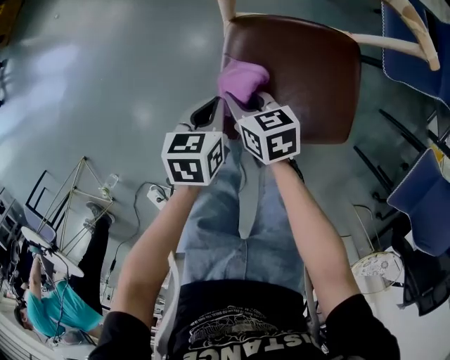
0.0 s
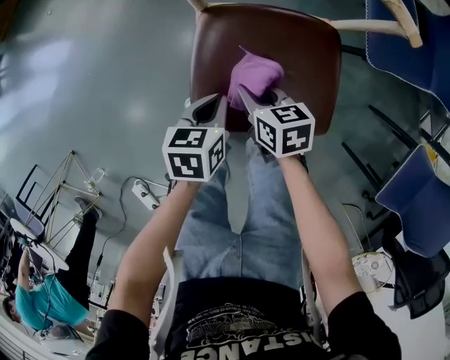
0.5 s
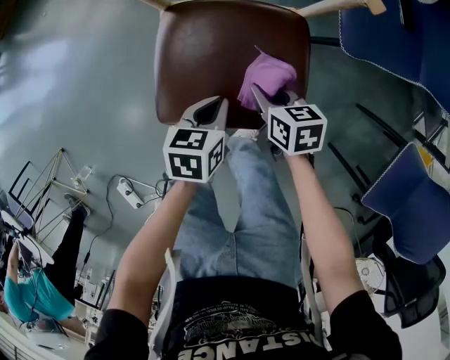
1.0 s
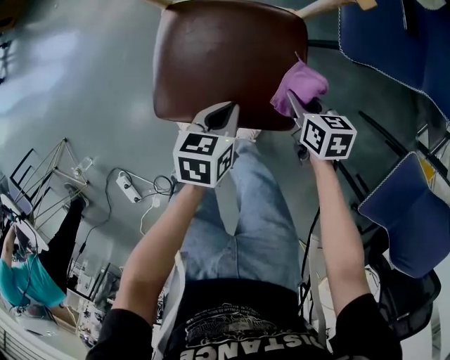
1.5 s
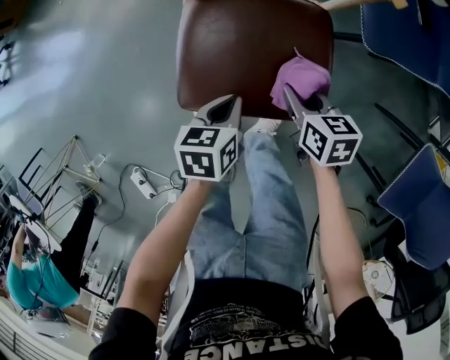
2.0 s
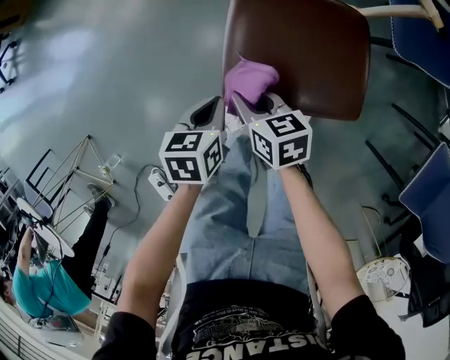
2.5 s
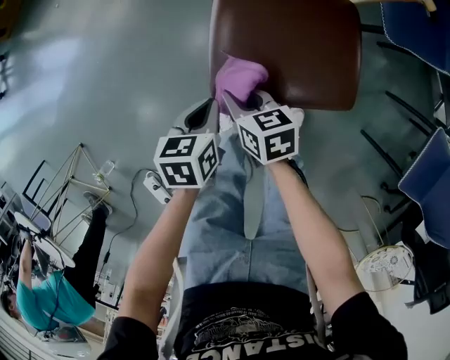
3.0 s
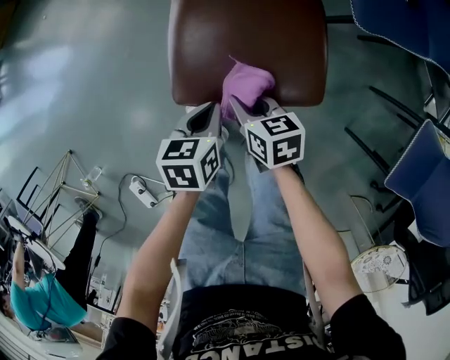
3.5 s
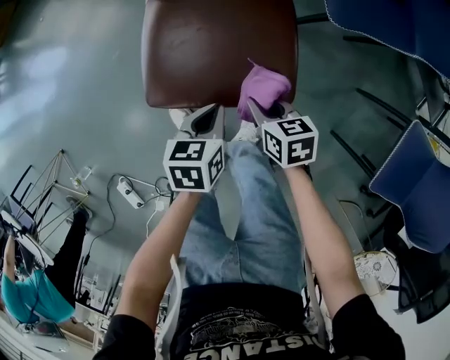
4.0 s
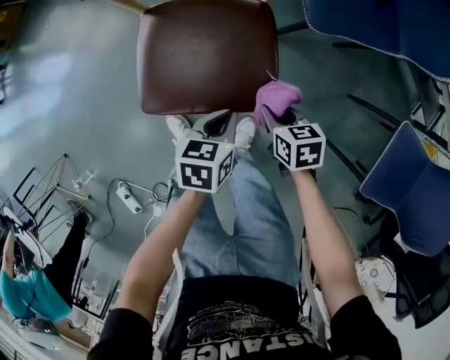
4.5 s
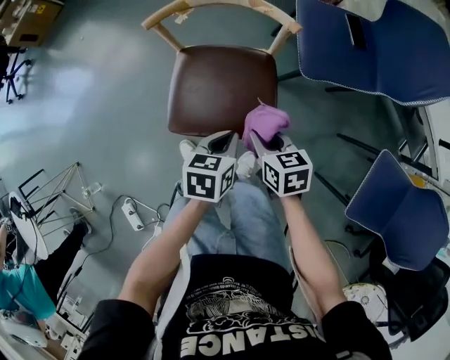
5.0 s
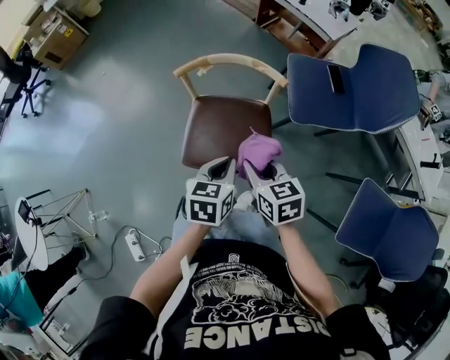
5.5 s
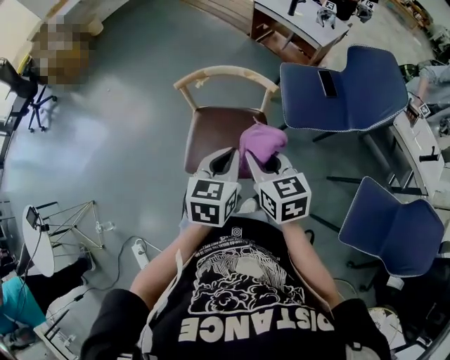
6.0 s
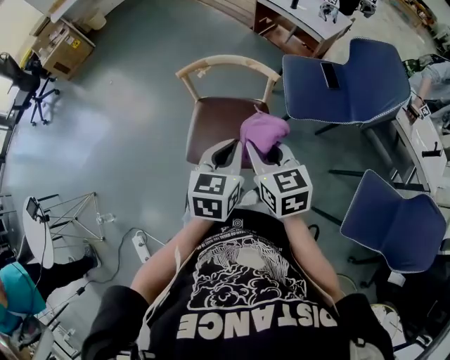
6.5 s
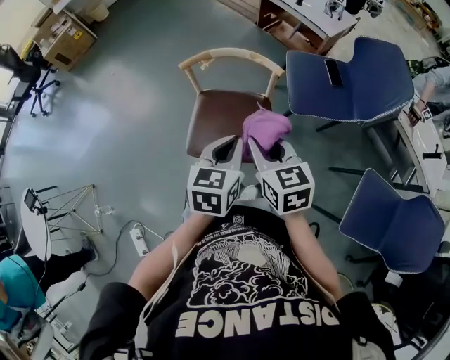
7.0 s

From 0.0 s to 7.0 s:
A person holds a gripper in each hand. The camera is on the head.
From 0.0 s to 2.0 s: The left gripper moves to the right and backward, some 15 cm. The right gripper goes roughly 25 cm to the right.
From 2.0 s to 3.5 s: The left gripper travels to the left and back again, some 15 cm each way; the right gripper travels to the left and backward by about 15 cm.
From 3.5 s to 5.0 s: The two grippers go about 20 cm upward and to the right.
From 5.0 s to 7.0 s: Both grippers travel together upward, some 20 cm. The right gripper rotates some 20 degrees. Meanwhile the left gripper swivels approximately 20 degrees.

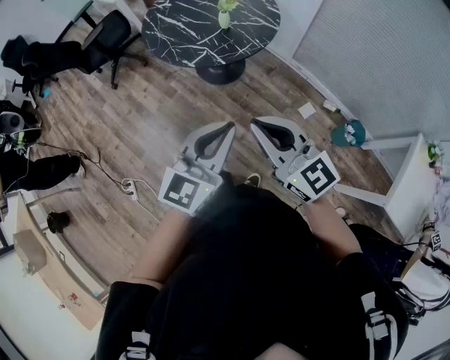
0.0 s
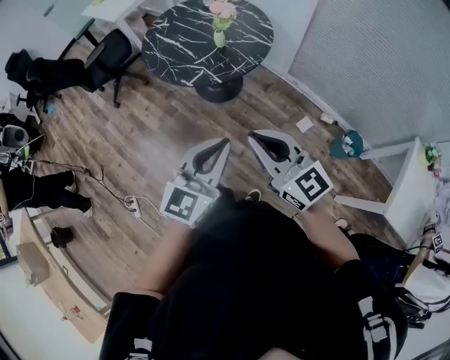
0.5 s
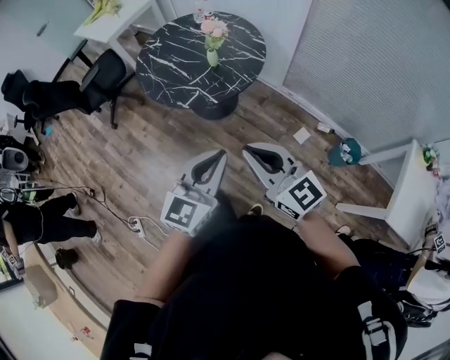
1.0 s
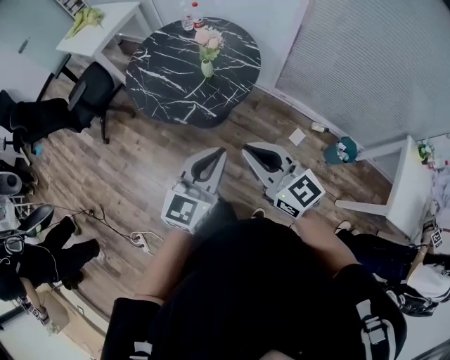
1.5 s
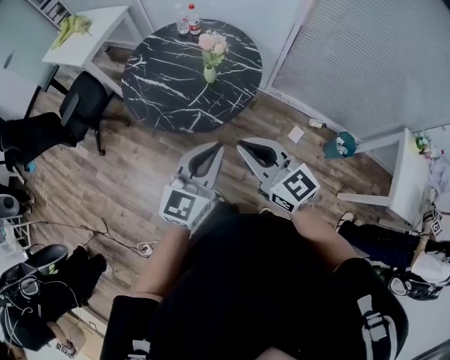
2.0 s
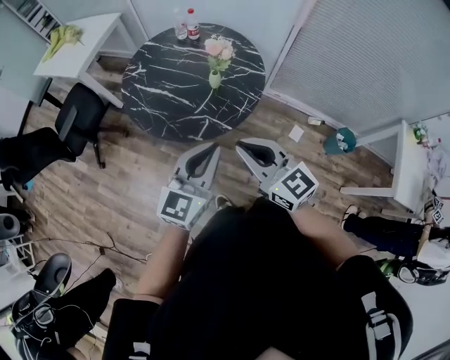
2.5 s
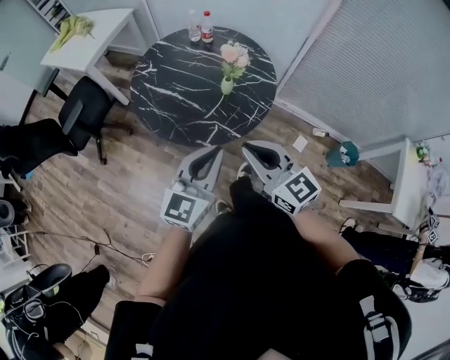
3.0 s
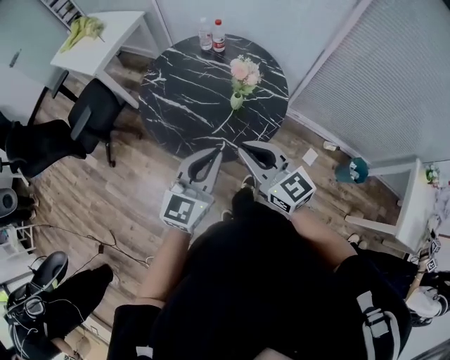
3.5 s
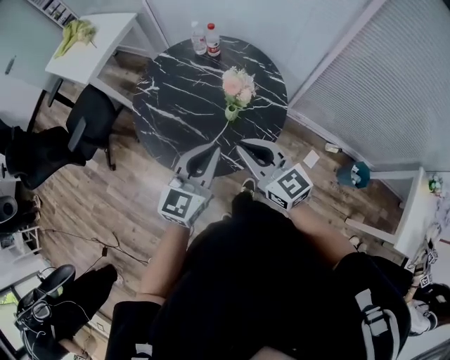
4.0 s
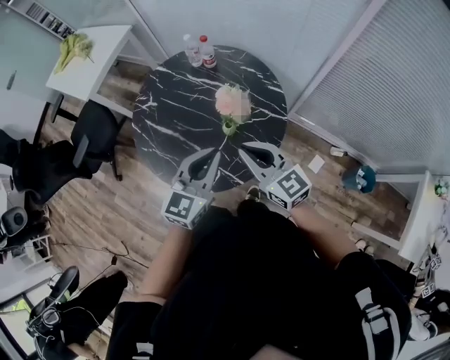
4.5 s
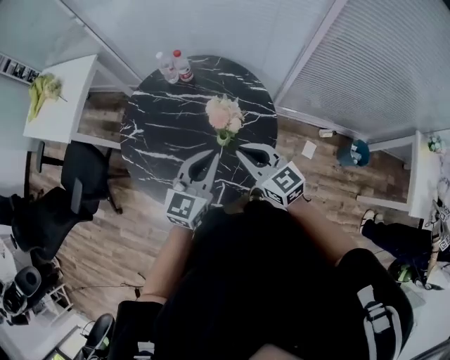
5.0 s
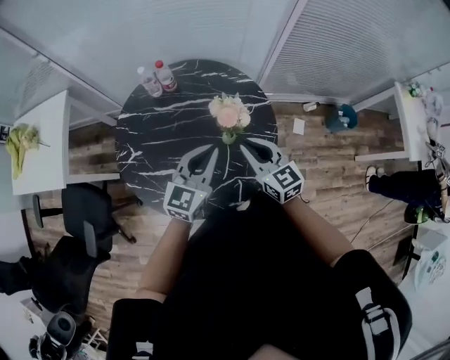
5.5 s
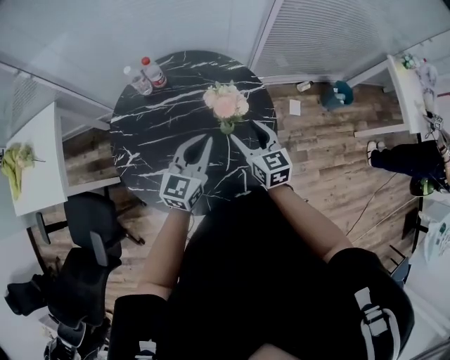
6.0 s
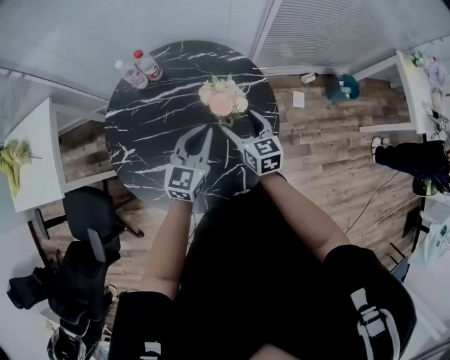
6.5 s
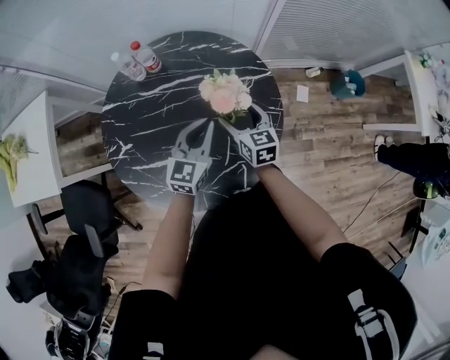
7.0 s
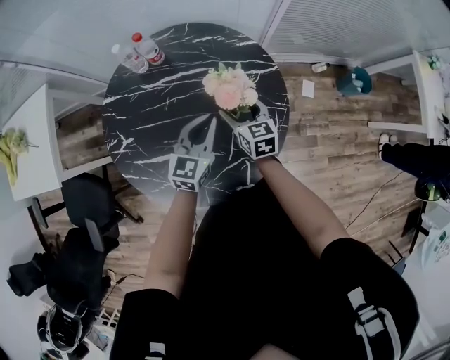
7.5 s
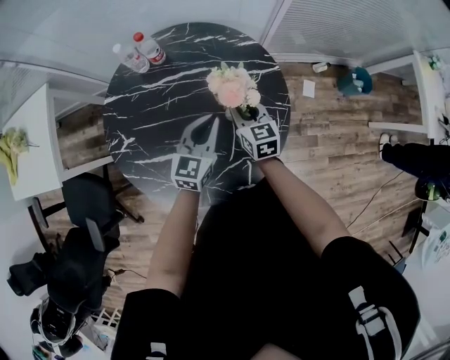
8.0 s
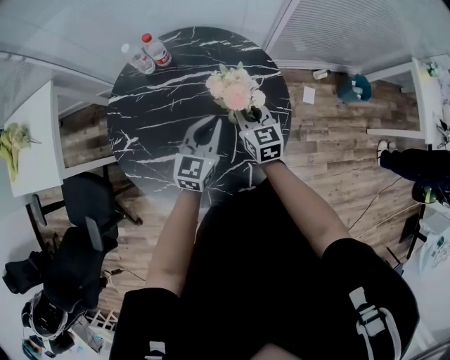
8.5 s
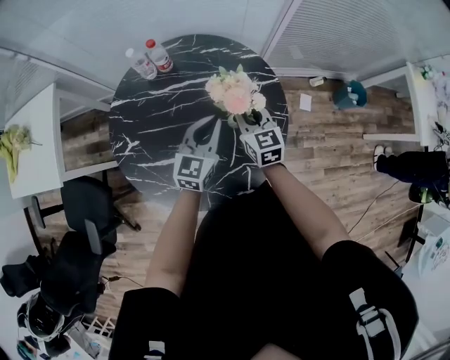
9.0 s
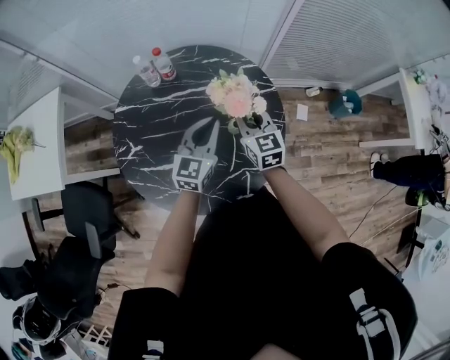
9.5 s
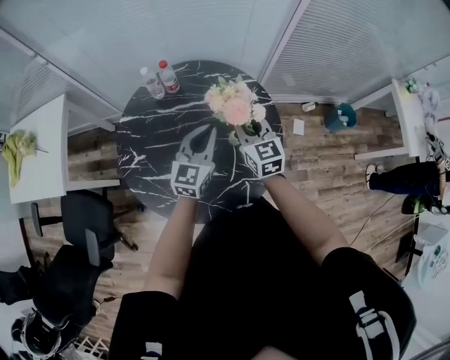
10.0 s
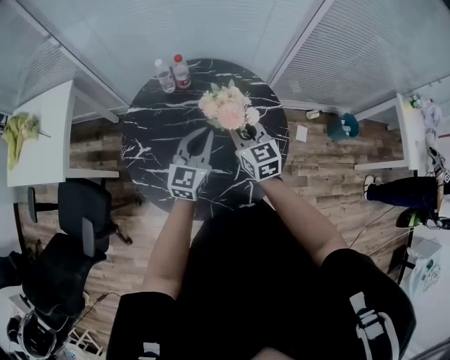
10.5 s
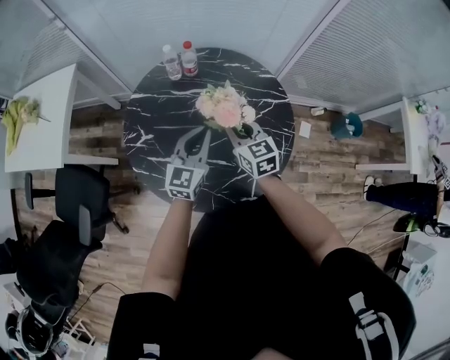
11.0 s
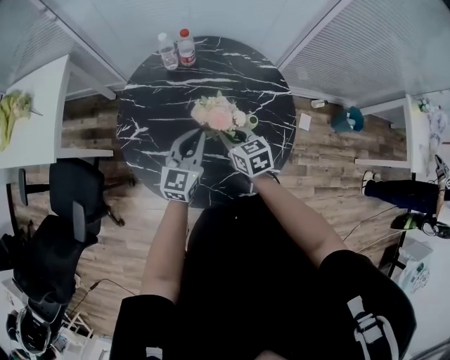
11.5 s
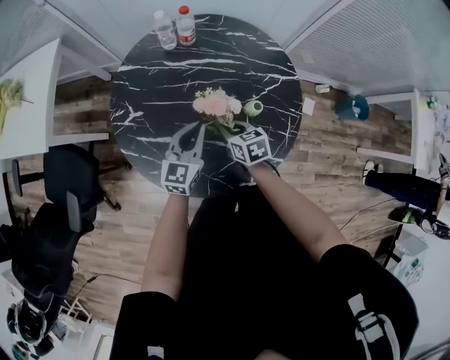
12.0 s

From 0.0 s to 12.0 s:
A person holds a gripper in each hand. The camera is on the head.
From 0.0 s to 2.0 s: Both grippers travel together forward and to the left, approximately 20 cm.
From 2.0 s to 4.0 s: The two grippers go some 25 cm forward.
From 4.0 s to 6.0 s: The right gripper moves about 20 cm, rotates about 60 degrees, and opens, while the left gripper changes place by roughly 20 cm, and changes its angle by roughly 40 degrees.
From 6.0 s to 8.0 s: The left gripper heads downward, covering roughly 10 cm; the right gripper heads downward and forward, covering approximately 15 cm, and closes its fingers.
From 8.0 s to 10.0 s: The left gripper heads upward, covering about 10 cm; the right gripper moves upward, about 15 cm.
From 10.0 s to 12.0 s: The right gripper heads downward and to the left, covering some 25 cm, and swivels some 40 degrees. Meanwhile the left gripper heads downward and to the left, covering some 15 cm.

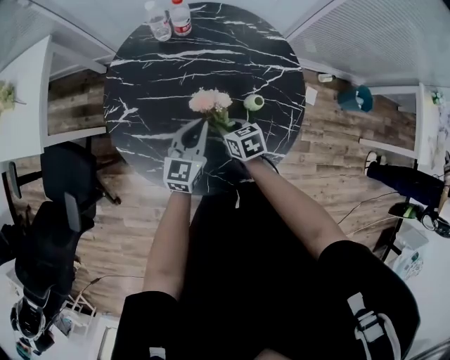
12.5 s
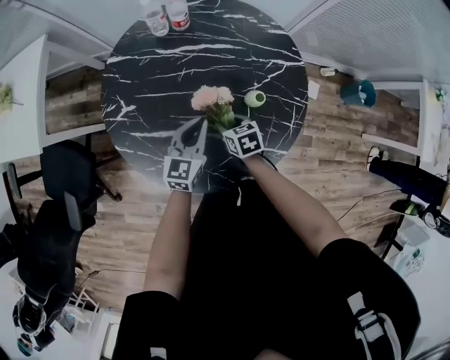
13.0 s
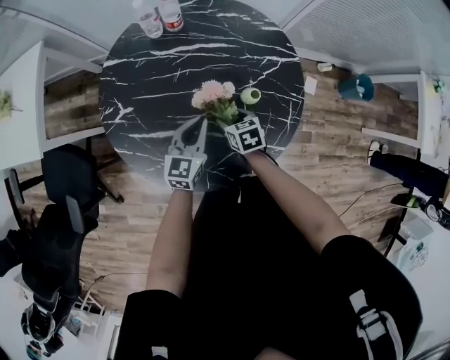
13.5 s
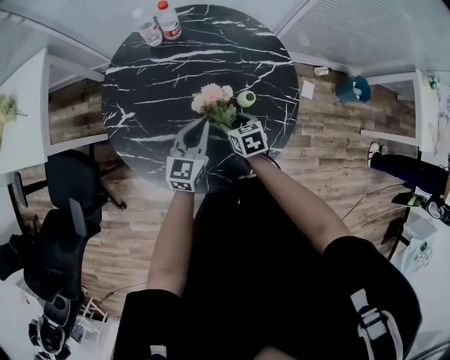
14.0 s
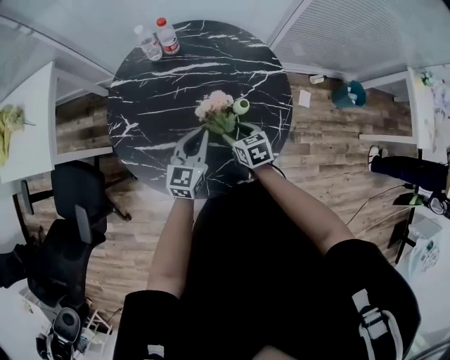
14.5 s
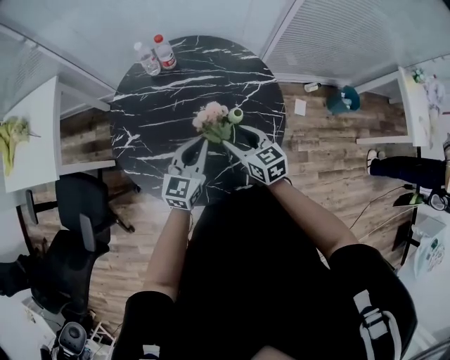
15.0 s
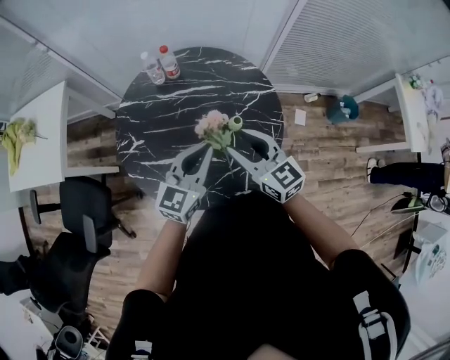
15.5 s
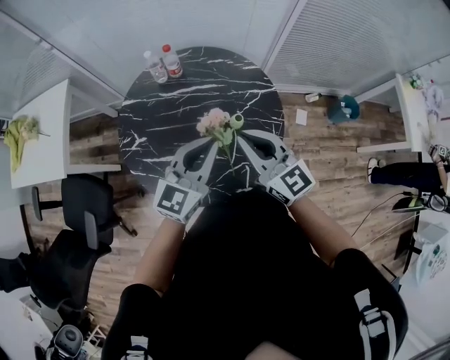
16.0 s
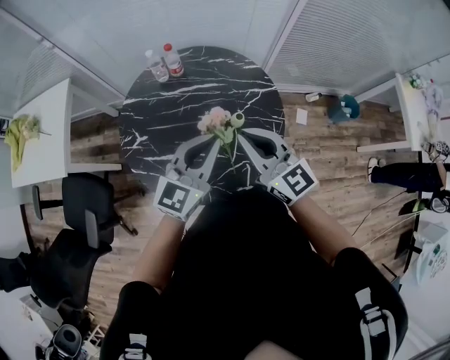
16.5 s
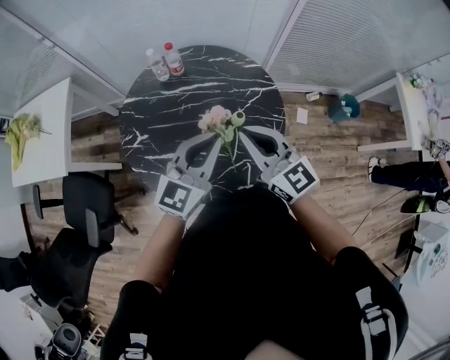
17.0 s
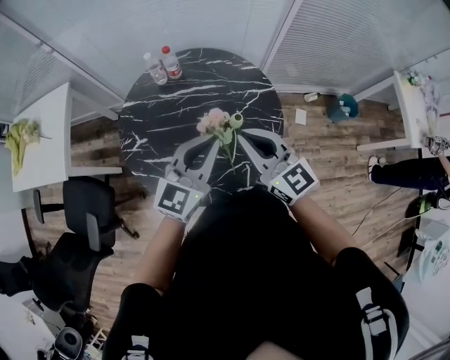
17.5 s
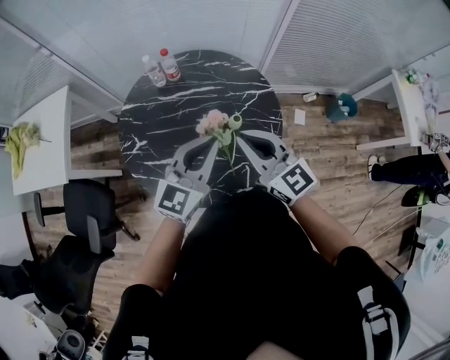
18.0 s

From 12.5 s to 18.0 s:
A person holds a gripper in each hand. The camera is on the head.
From 12.5 s to 14.5 s: The right gripper goes about 5 cm to the right, and opens.
From 14.5 s to 16.0 s: The grippers both shift upward by about 25 cm. The right gripper angles its fingers upward, by roughly 50 degrees, and closes.
From 16.0 s to 18.0 s: The grippers stay close to where they were, moving slightly.

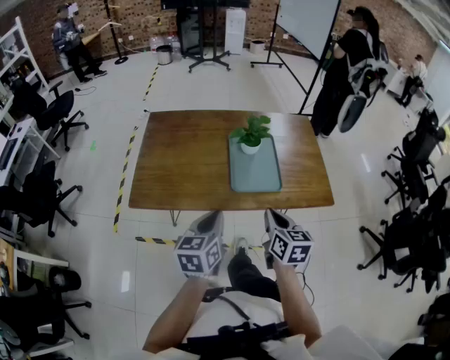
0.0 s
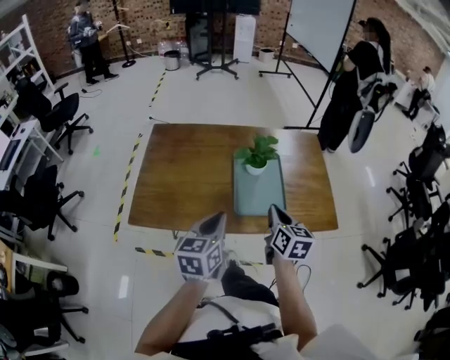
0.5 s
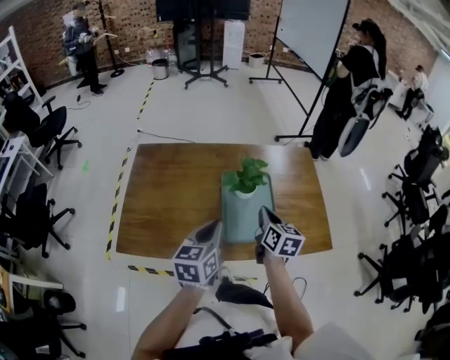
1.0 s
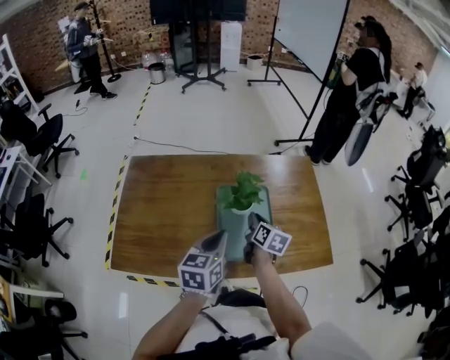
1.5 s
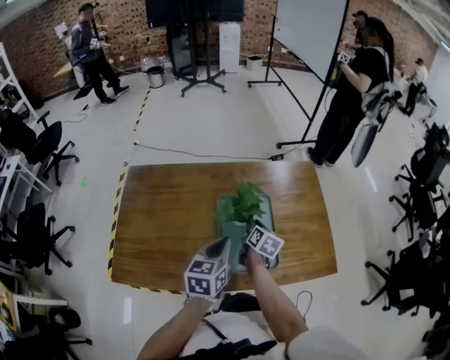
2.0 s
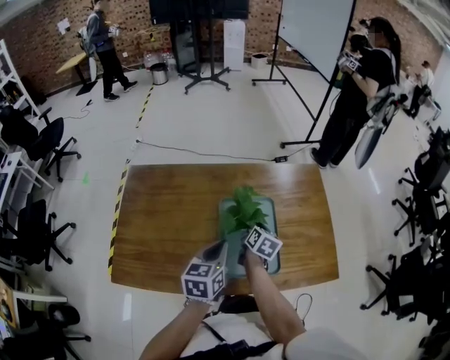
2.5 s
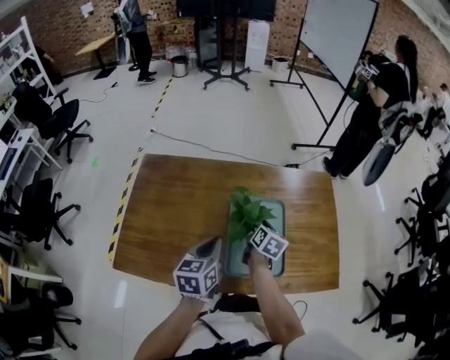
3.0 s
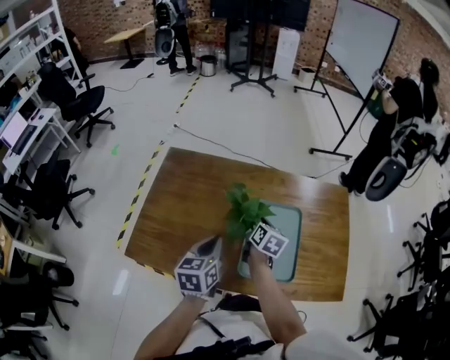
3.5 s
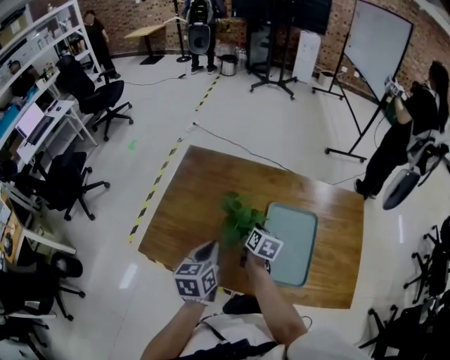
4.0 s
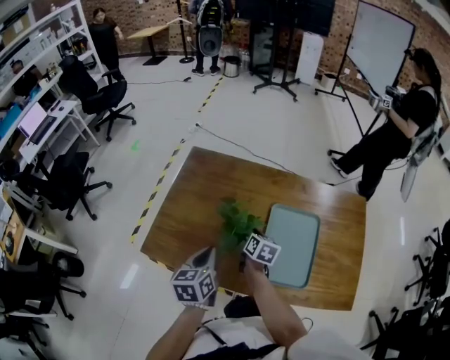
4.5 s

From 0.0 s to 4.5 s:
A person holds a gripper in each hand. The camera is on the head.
From 0.0 s to 2.0 s: The right gripper goes some 40 cm forward and downward, rotates some 30 degrees, and opens its fingers. Meanwhile the left gripper heads forward, covering some 30 cm.
From 2.0 s to 4.5 s: The left gripper ends up approximately 20 cm from where it was, and swivels some 30 degrees. The right gripper shifts by approximately 20 cm, and changes its angle by approximately 30 degrees.
